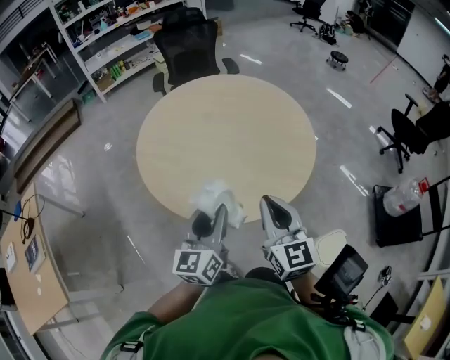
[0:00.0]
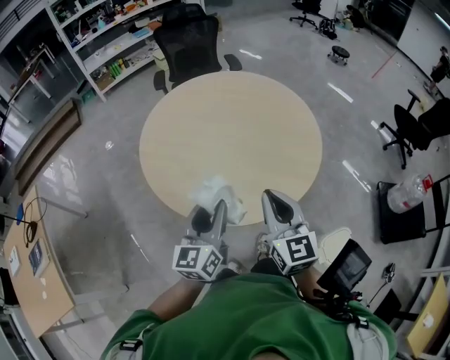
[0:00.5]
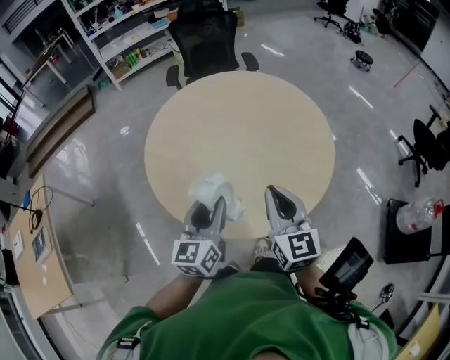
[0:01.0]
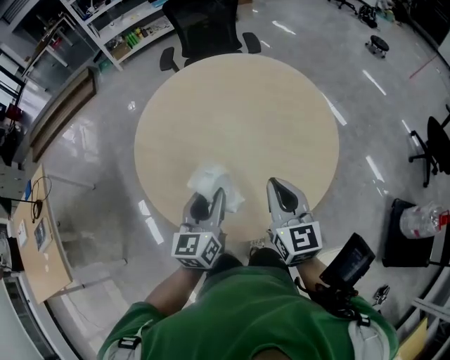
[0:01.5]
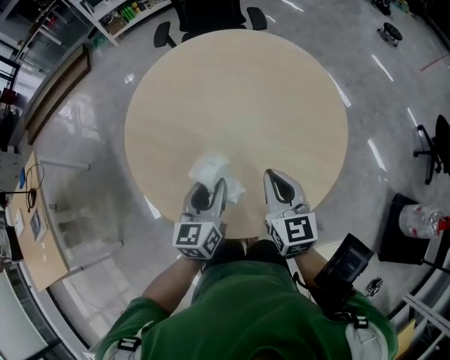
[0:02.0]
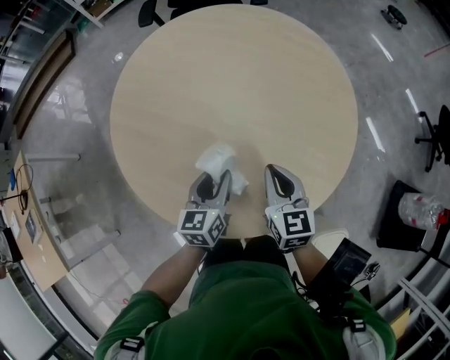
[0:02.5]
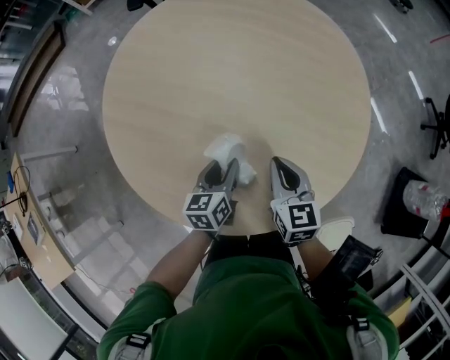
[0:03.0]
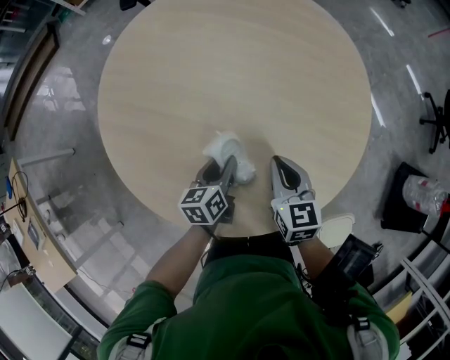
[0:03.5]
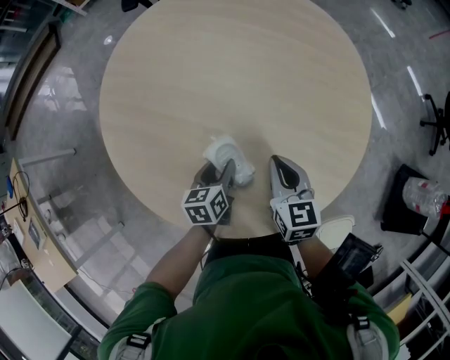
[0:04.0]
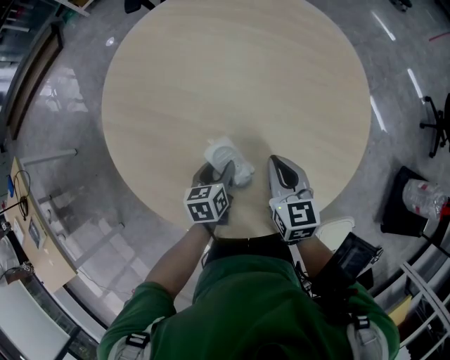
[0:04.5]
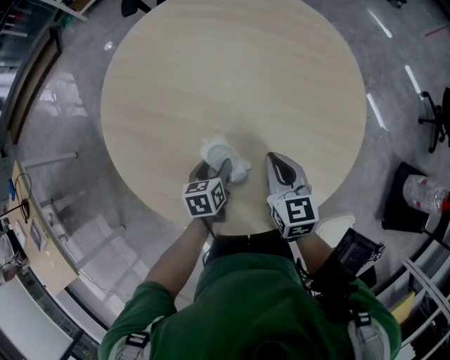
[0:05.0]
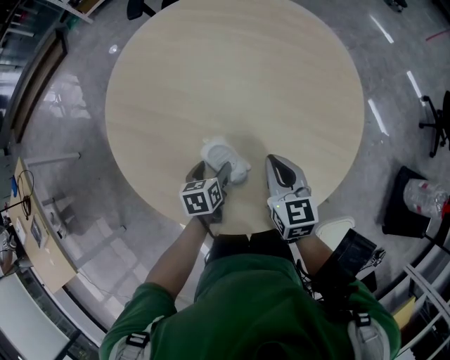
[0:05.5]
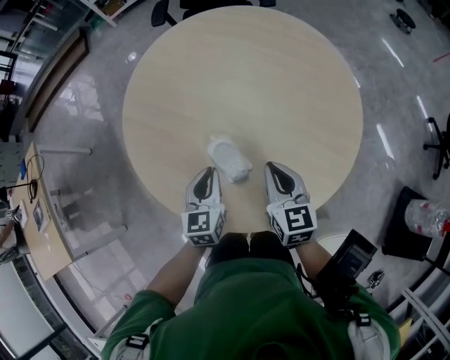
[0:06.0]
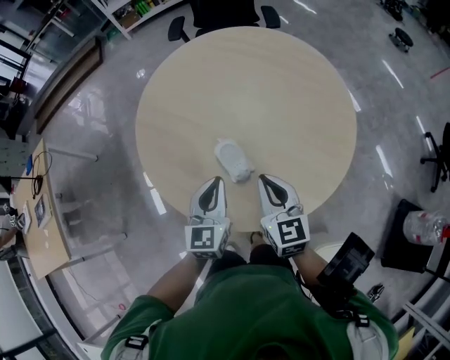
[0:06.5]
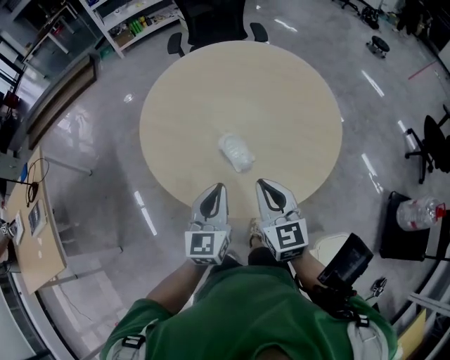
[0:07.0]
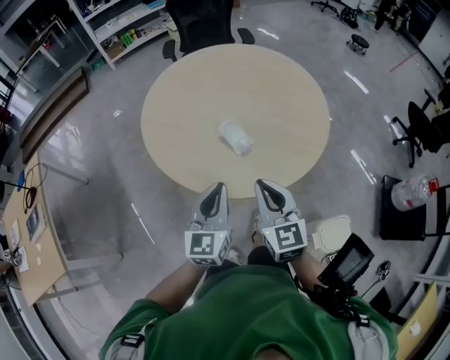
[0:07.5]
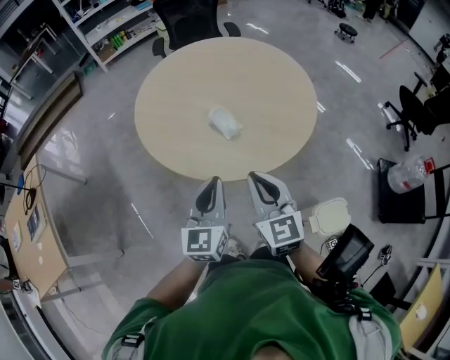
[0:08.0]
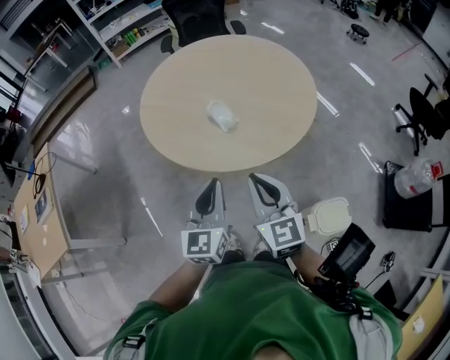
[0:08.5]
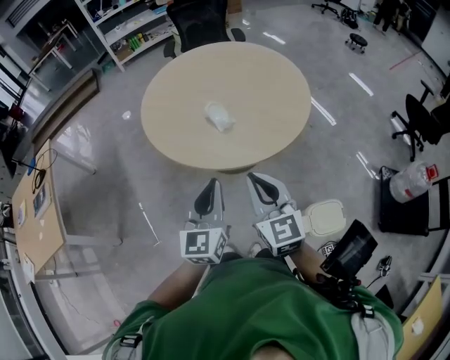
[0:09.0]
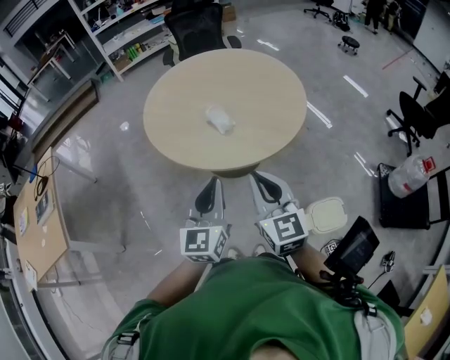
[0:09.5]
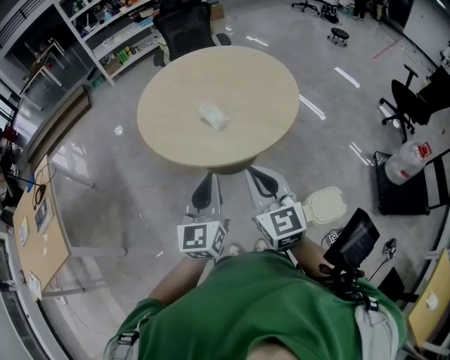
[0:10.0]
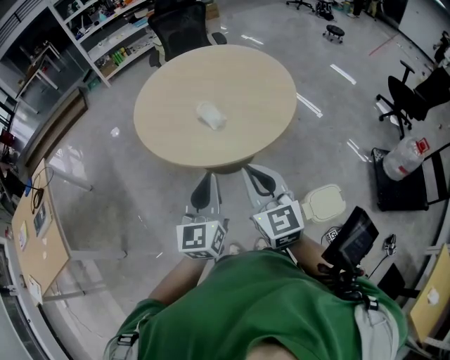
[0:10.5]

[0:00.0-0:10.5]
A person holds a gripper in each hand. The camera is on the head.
0:00.0 to 0:02.0: The grippers both shift forward and downward by approximately 25 cm. The left gripper changes its angle by roughly 20 degrees.
0:02.0 to 0:04.0: The left gripper is displaced downward by about 20 cm, and changes its angle by about 30 degrees. Meanwhile the right gripper is displaced downward and forward by some 15 cm.
0:04.0 to 0:06.5: The left gripper heads upward and backward, covering approximately 20 cm, rotates some 40 degrees, and closes its fingers, while the right gripper shifts about 15 cm upward and backward.
0:06.5 to 0:08.5: Both grippers travel together backward, some 30 cm.
0:08.5 to 0:10.5: The grippers both shift backward by about 5 cm.

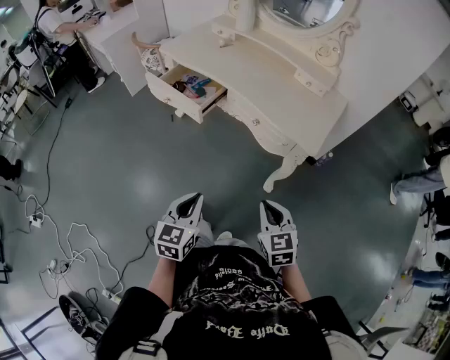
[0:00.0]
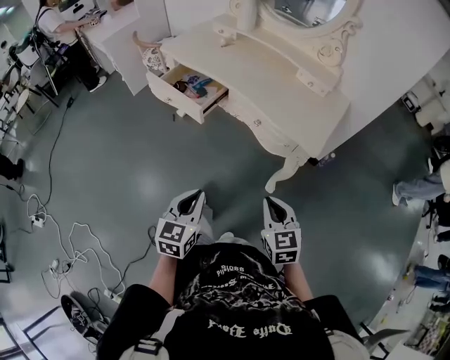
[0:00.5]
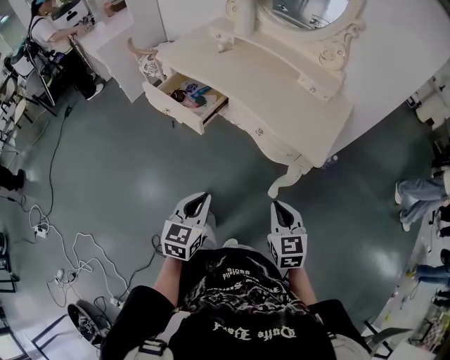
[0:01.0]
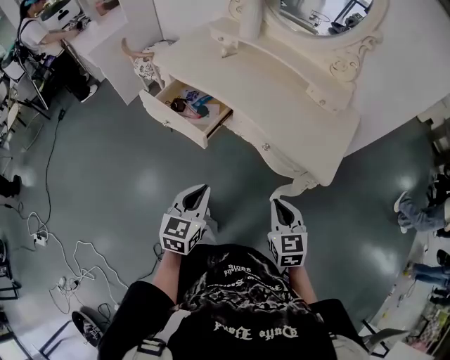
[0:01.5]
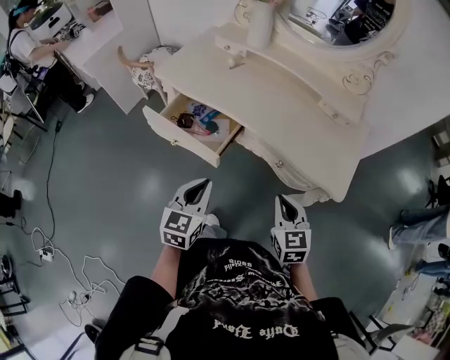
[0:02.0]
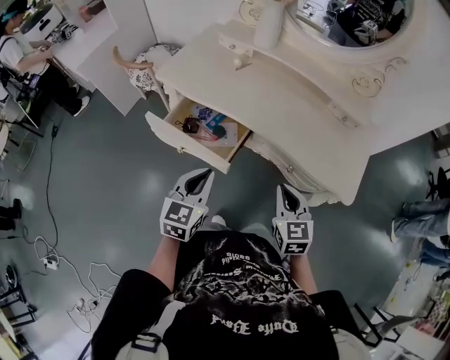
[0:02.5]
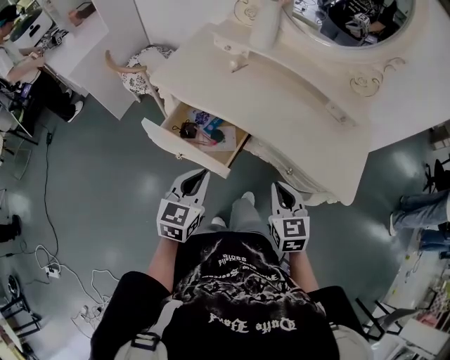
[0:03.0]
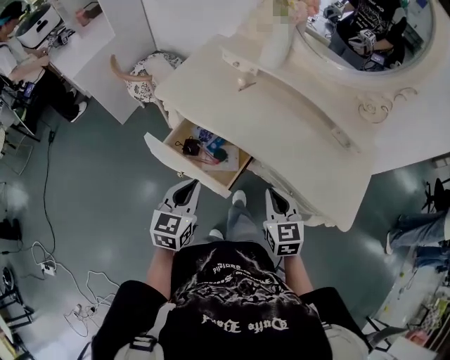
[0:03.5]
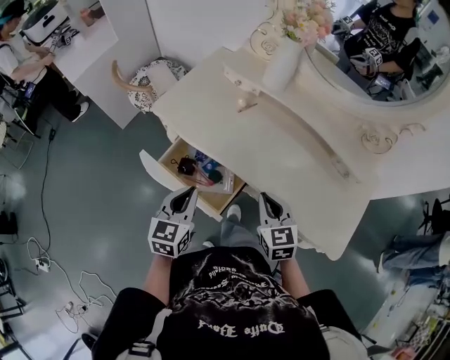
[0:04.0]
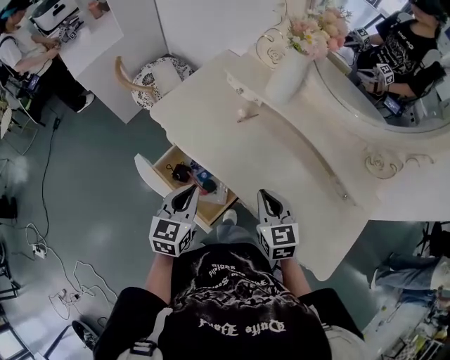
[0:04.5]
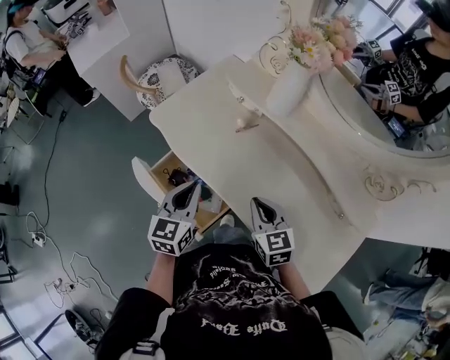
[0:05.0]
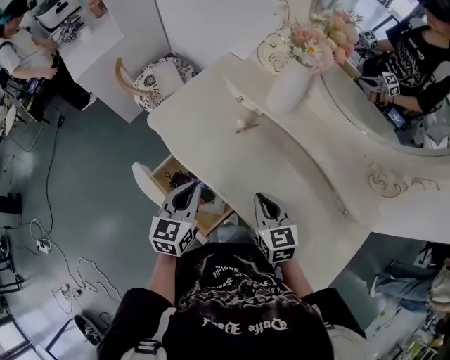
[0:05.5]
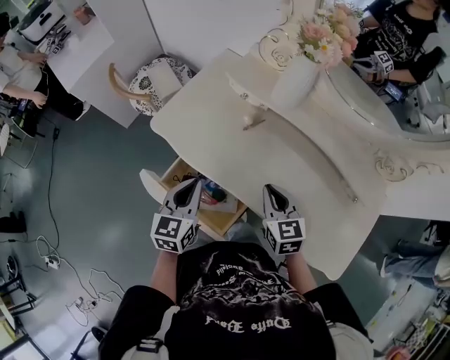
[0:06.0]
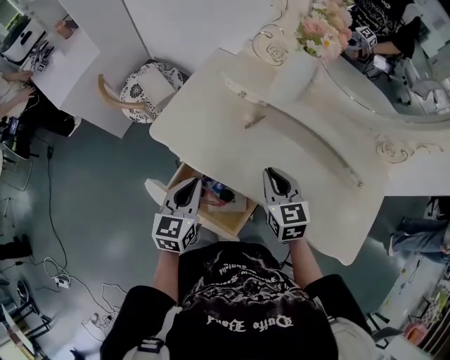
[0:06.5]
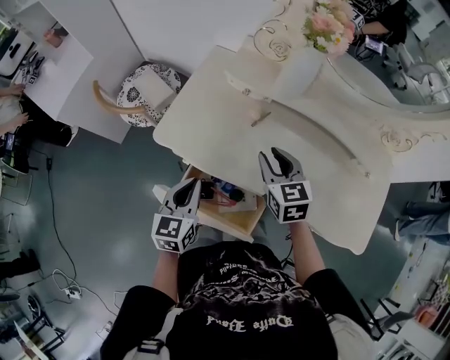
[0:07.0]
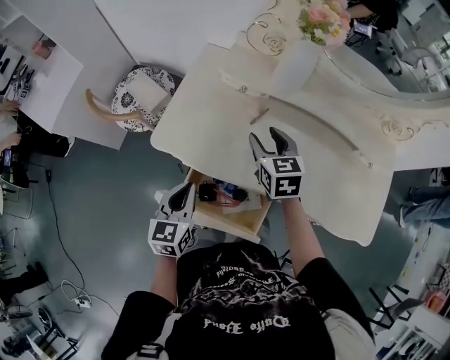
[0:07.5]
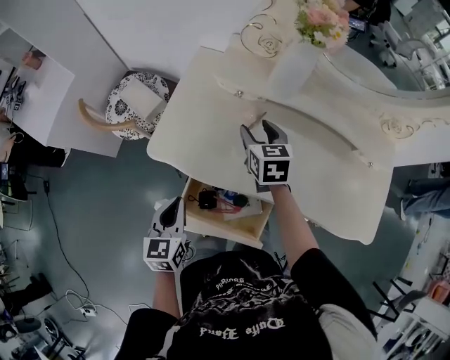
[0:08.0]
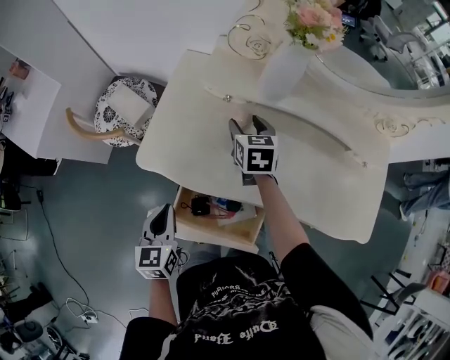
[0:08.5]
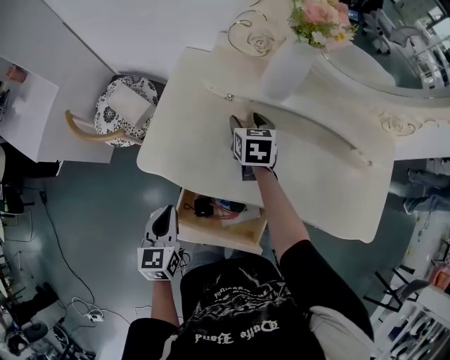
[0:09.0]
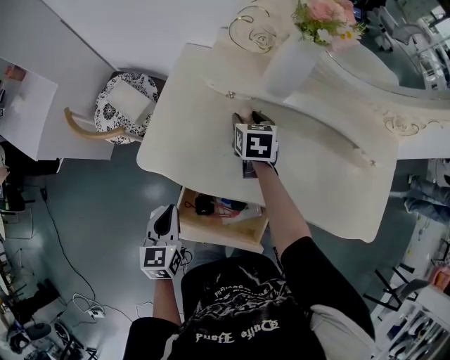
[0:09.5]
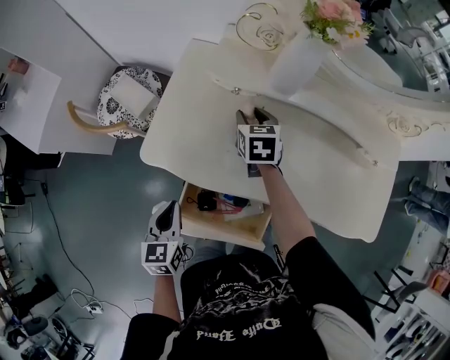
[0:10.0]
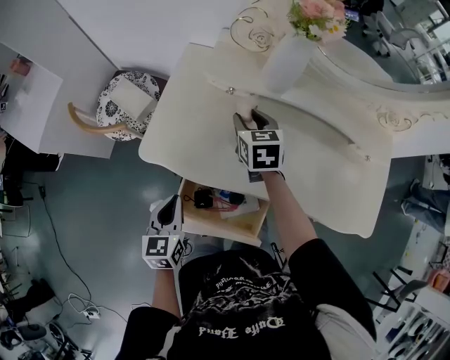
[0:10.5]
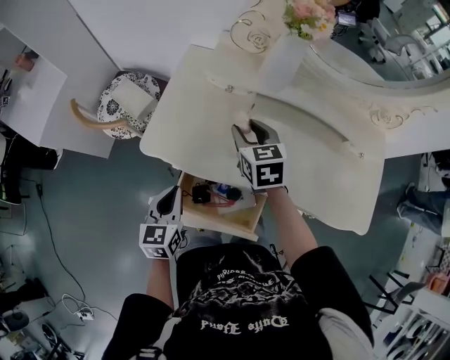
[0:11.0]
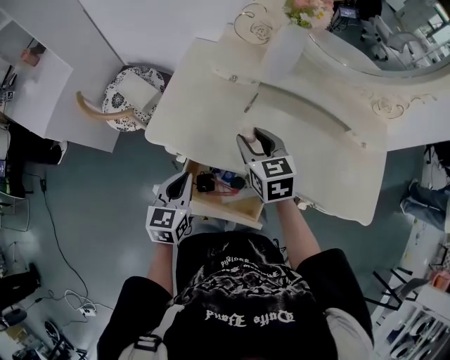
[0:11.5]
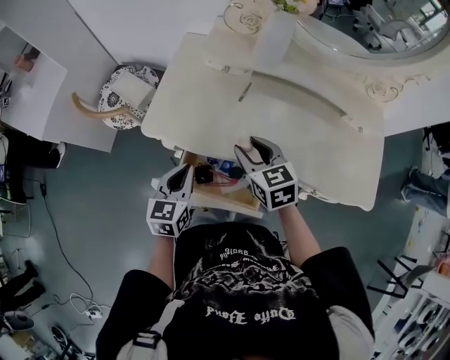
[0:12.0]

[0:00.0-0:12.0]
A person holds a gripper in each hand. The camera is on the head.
0:00.0 to 0:02.0: Both grippers travel together forward, some 25 cm.
0:02.0 to 0:04.0: Both grippers move forward and to the left, approximately 25 cm.
0:04.0 to 0:06.0: The two grippers go about 10 cm forward.
0:06.0 to 0:08.0: The right gripper goes approximately 20 cm forward and to the left, turns by about 20 degrees, and opens up. The left gripper heads to the left, covering some 10 cm.
0:08.0 to 0:10.0: The right gripper is displaced forward by roughly 5 cm.
0:10.0 to 0:12.0: The right gripper is displaced backward by approximately 20 cm; the left gripper moves to the right, roughly 5 cm.

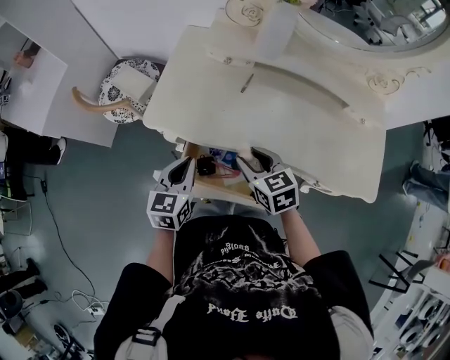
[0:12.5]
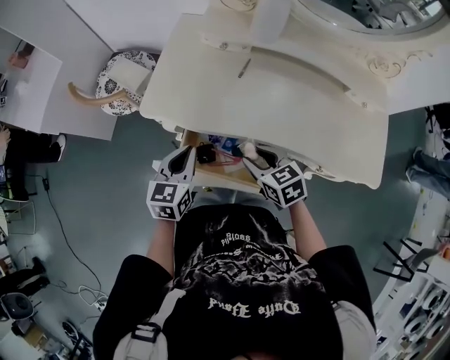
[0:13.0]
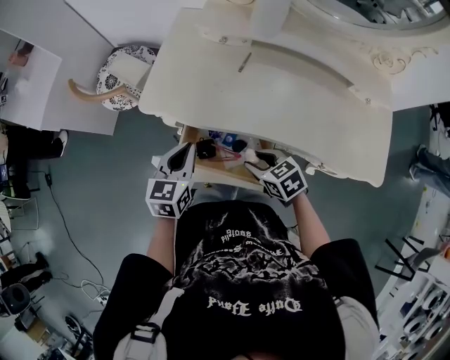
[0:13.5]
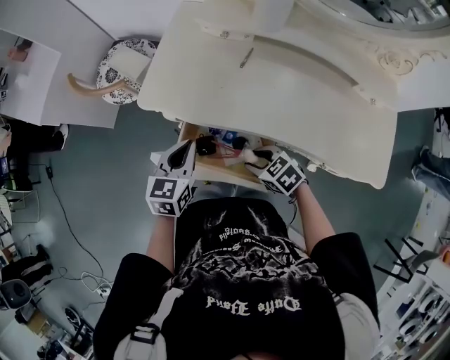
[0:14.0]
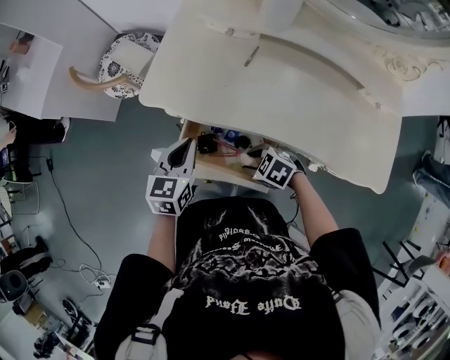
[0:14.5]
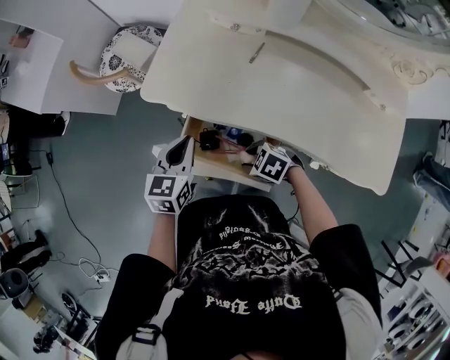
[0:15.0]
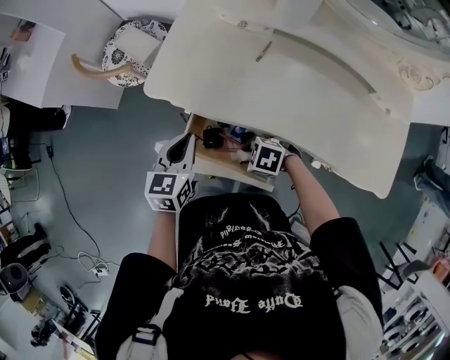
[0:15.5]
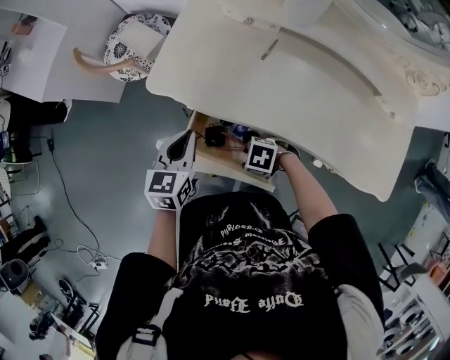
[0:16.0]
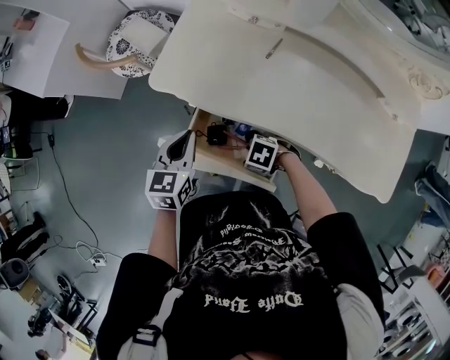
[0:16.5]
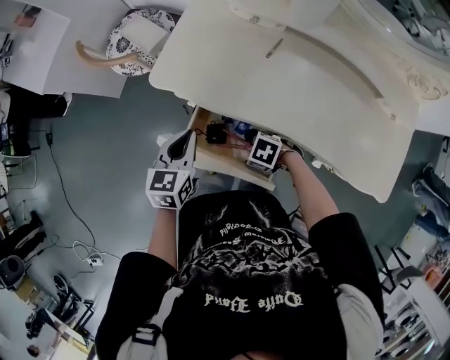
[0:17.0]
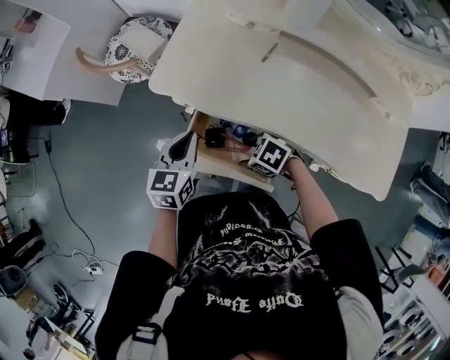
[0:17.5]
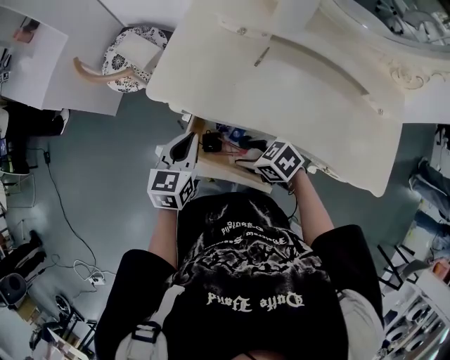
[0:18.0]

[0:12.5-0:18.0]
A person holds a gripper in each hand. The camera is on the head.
0:12.5 to 0:14.5: The right gripper heads downward, covering about 15 cm, and changes its angle by roughly 50 degrees.
0:14.5 to 0:16.0: The right gripper ends up approximately 5 cm from where it was, and swivels approximately 20 degrees.
0:16.0 to 0:18.0: The right gripper goes approximately 10 cm upward, and turns by some 40 degrees.
